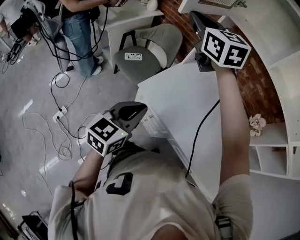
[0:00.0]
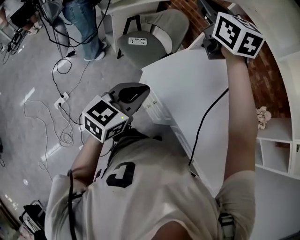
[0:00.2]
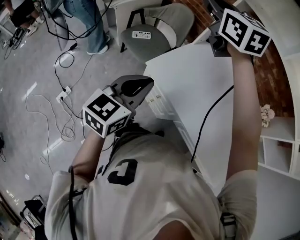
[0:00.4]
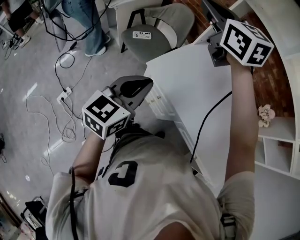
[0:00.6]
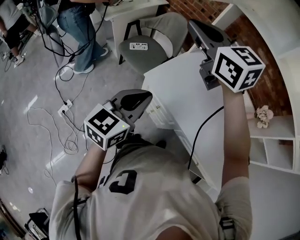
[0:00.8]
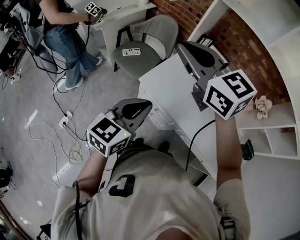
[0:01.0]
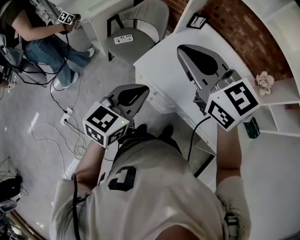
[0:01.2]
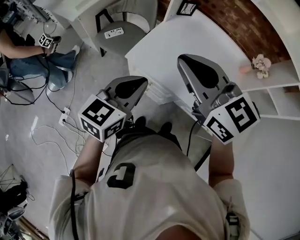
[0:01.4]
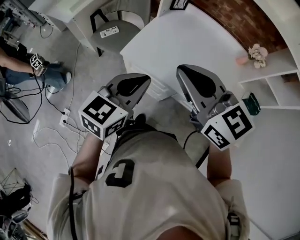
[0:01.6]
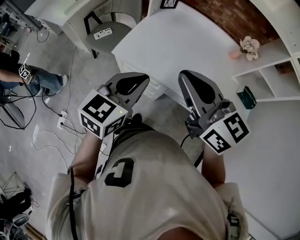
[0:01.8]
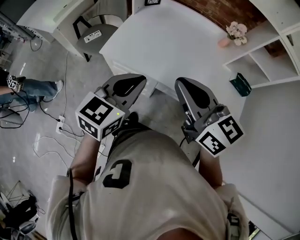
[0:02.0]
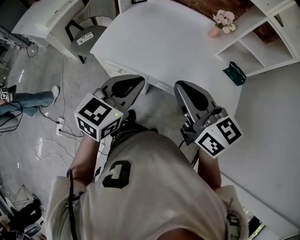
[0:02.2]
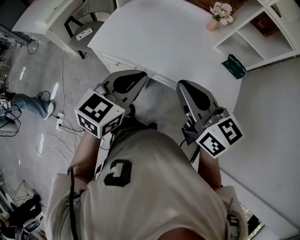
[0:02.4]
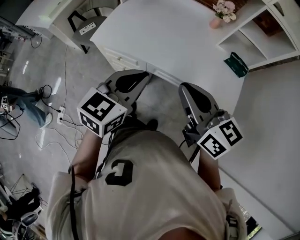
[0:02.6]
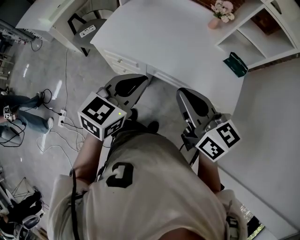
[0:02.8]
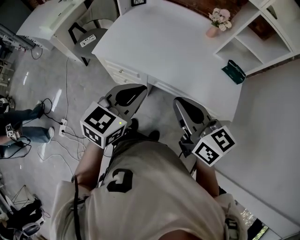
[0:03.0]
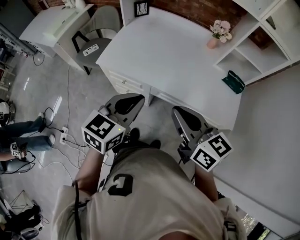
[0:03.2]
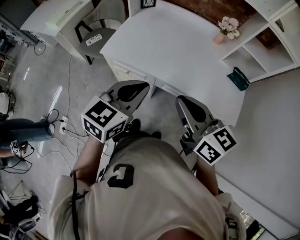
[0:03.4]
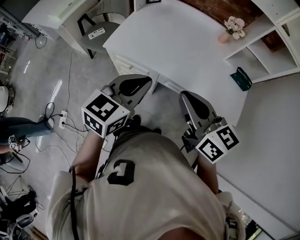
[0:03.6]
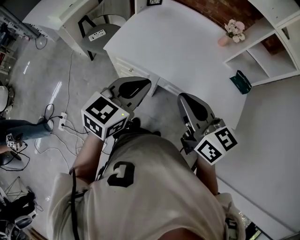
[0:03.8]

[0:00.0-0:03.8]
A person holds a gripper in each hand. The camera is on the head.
0:00.0 to 0:01.2: The right gripper is displaced backward by about 20 cm.
0:01.2 to 0:02.6: The two grippers go roughly 30 cm to the right and backward. The right gripper changes its angle by about 40 degrees.
0:02.6 to 0:03.8: The grippers both shift to the left by roughly 5 cm.

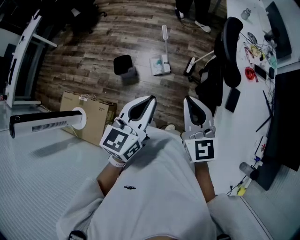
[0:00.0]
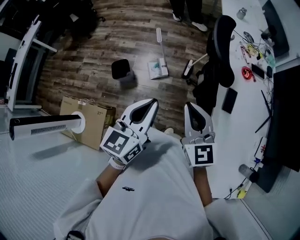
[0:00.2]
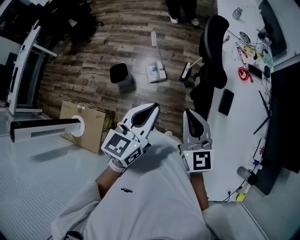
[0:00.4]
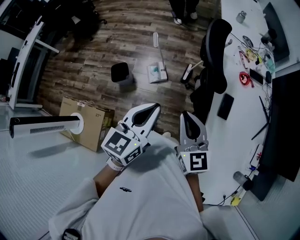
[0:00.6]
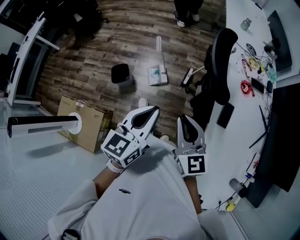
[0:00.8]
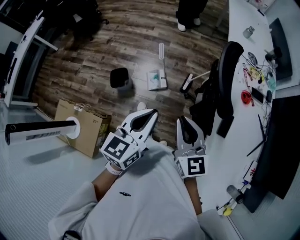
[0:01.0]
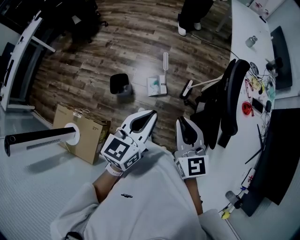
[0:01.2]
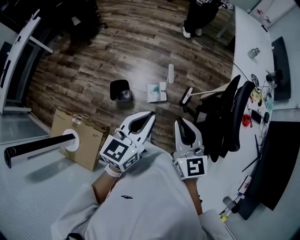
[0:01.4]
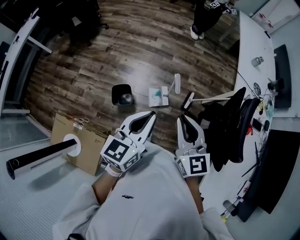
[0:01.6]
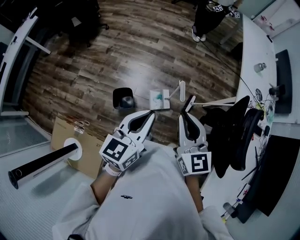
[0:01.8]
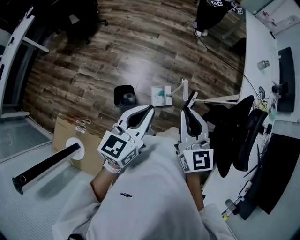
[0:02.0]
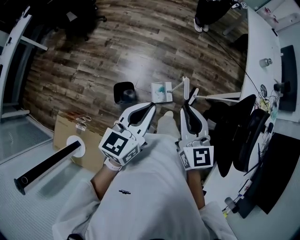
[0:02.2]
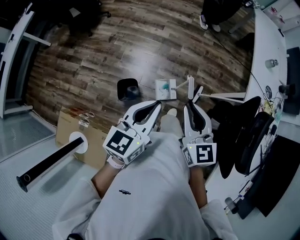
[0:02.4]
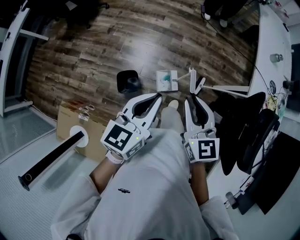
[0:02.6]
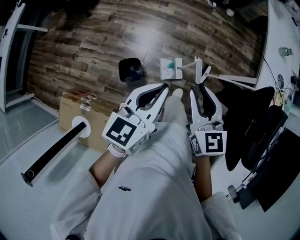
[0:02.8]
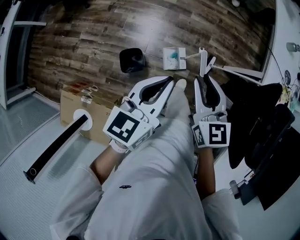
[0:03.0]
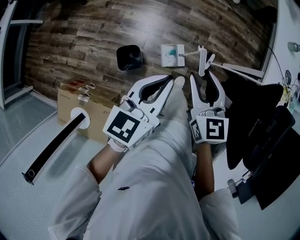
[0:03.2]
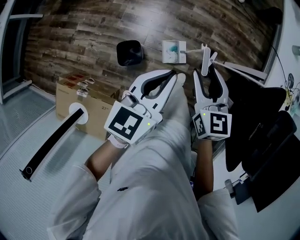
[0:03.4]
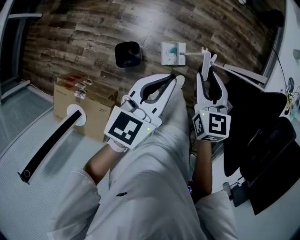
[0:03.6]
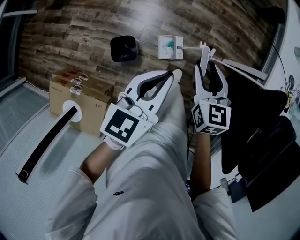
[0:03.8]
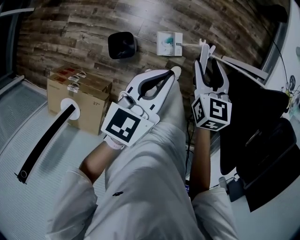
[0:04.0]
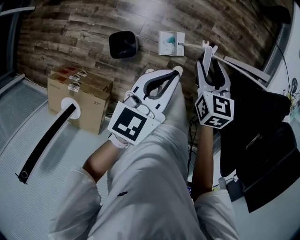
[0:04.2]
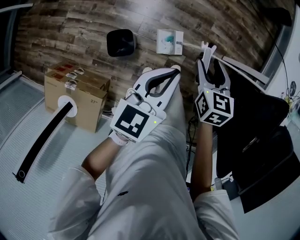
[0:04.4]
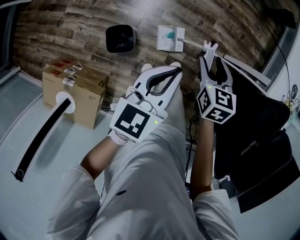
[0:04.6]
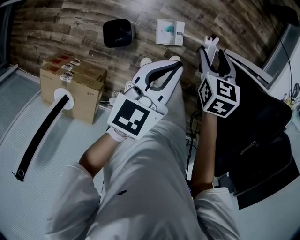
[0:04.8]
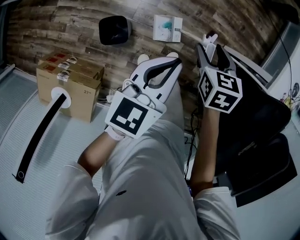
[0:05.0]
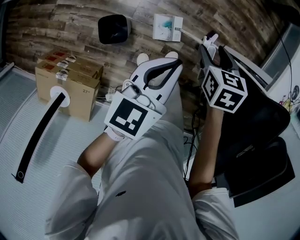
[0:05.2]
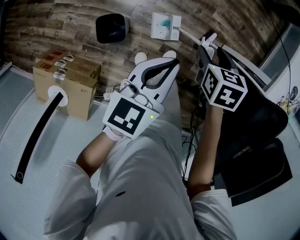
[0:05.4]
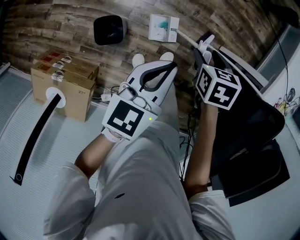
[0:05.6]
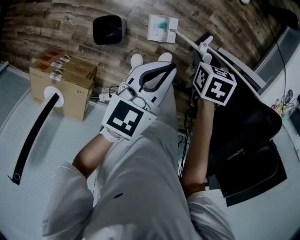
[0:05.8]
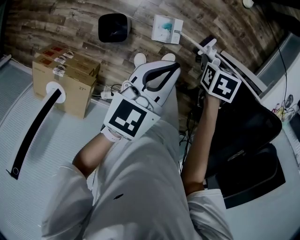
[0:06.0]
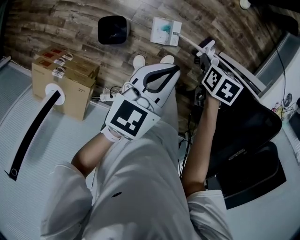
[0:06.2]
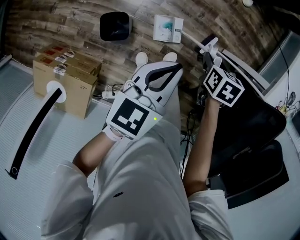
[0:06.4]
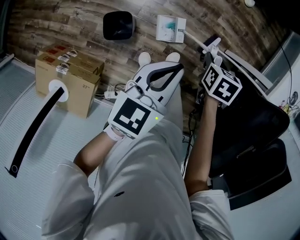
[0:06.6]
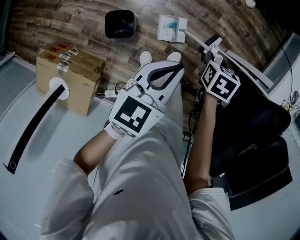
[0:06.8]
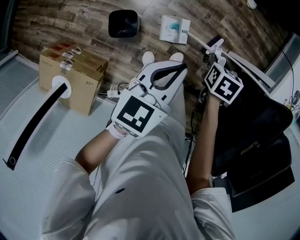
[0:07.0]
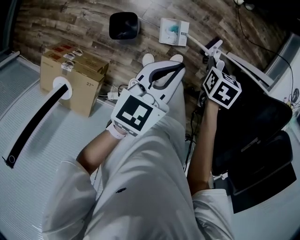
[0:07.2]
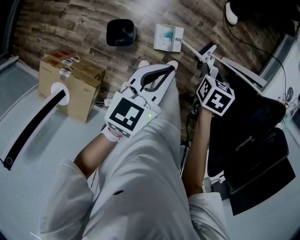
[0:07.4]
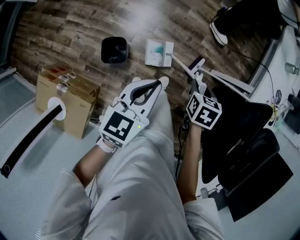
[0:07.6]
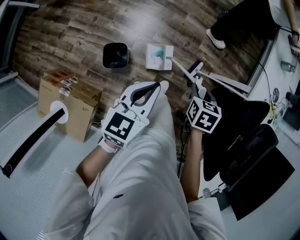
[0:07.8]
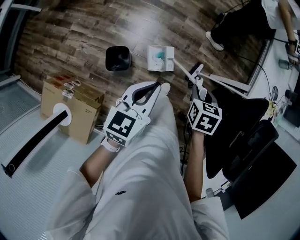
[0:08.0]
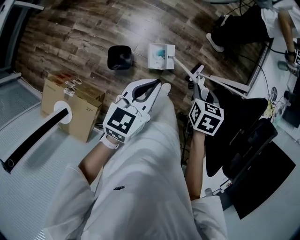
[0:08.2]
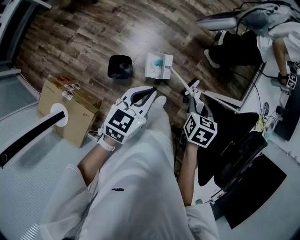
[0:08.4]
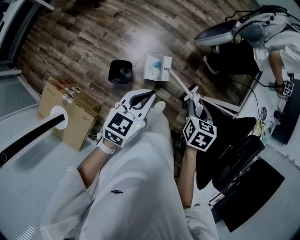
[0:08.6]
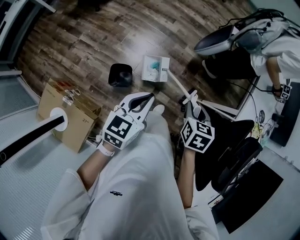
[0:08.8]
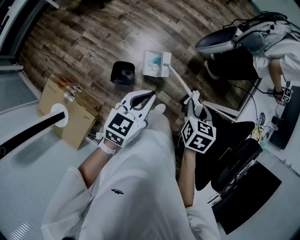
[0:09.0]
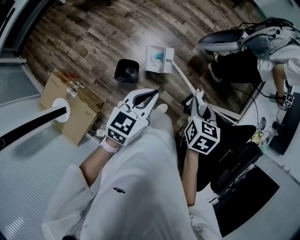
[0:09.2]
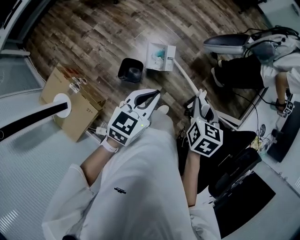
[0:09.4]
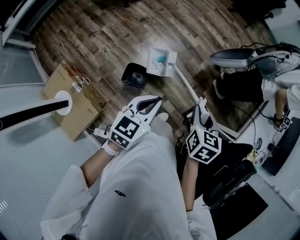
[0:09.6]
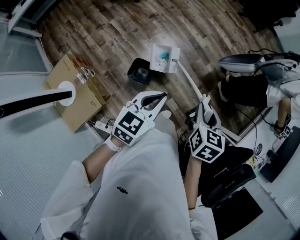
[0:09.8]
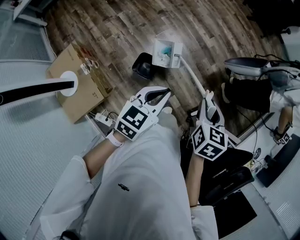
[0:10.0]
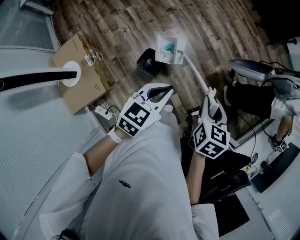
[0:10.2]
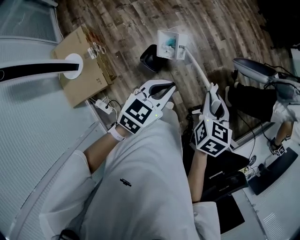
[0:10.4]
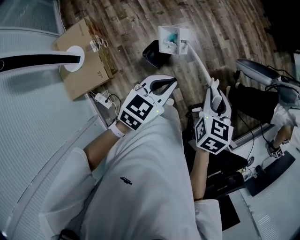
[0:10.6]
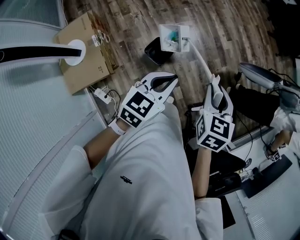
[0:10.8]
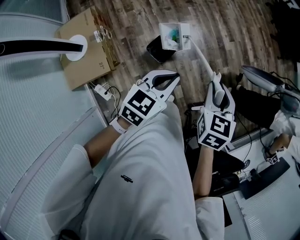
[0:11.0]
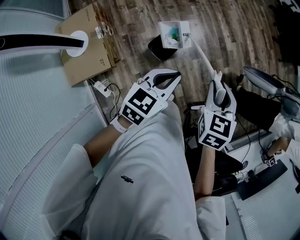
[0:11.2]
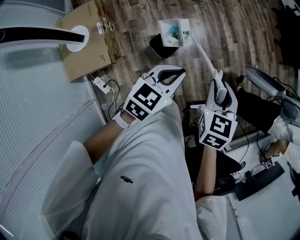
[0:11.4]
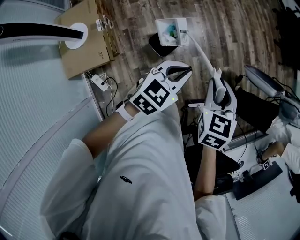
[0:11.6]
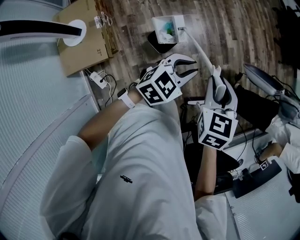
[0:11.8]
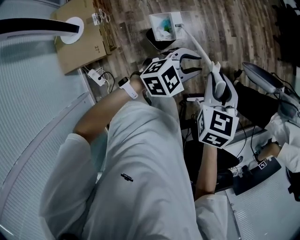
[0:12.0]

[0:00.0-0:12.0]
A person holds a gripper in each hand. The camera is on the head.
0:00.0 to 0:01.6: The grippers both shift forward and to the left by approximately 30 cm.
0:01.6 to 0:03.0: Both grippers travel together forward and downward, approximately 20 cm.
0:03.0 to 0:04.4: The left gripper heads downward, covering some 15 cm; the right gripper is displaced downward and forward by some 20 cm, turns by about 20 degrees, and opens up.
0:04.4 to 0:06.0: The right gripper moves downward, roughly 10 cm, points its fingers roughly 40 degrees further downward, and closes up. The left gripper goes roughly 5 cm downward.
0:06.0 to 0:07.6: The left gripper moves approximately 10 cm. Meanwhile the right gripper moves upward, roughly 10 cm.
0:07.6 to 0:09.0: The left gripper goes some 10 cm upward and to the left, while the right gripper heads upward and to the left, covering roughly 20 cm.
0:09.0 to 0:10.4: The left gripper is displaced to the left by some 10 cm; the right gripper moves to the left, roughly 15 cm, and rotates approximately 30 degrees.
0:10.4 to 0:12.0: The right gripper heads to the left, covering roughly 10 cm, and swivels approximately 30 degrees; the left gripper moves downward, about 5 cm, turns by approximately 20 degrees, and opens its fingers.

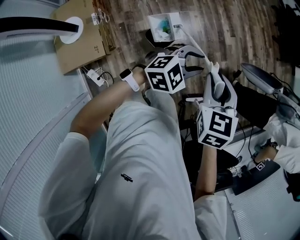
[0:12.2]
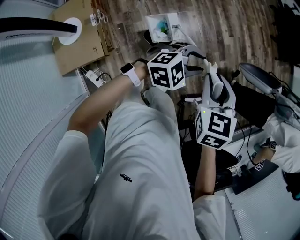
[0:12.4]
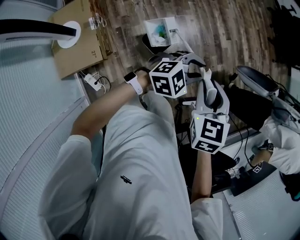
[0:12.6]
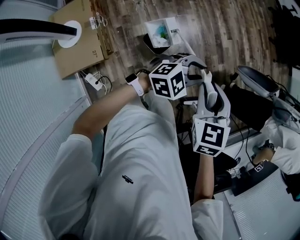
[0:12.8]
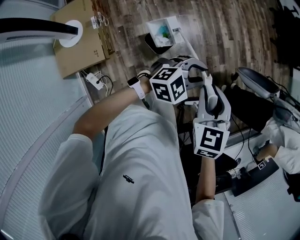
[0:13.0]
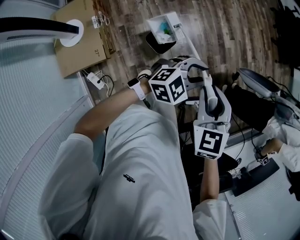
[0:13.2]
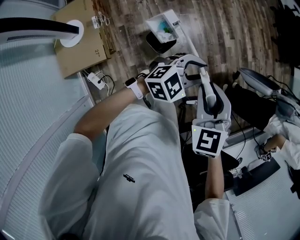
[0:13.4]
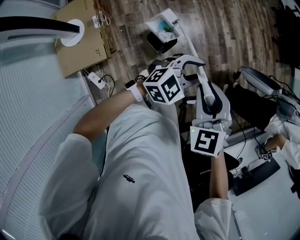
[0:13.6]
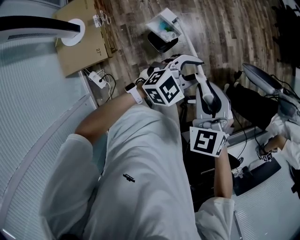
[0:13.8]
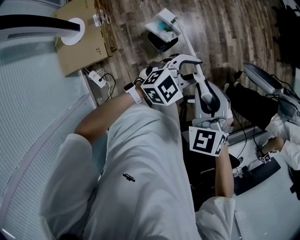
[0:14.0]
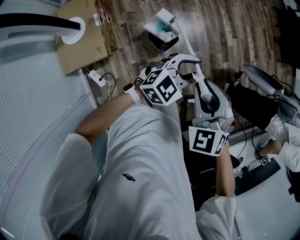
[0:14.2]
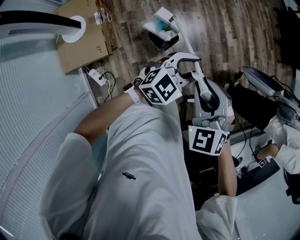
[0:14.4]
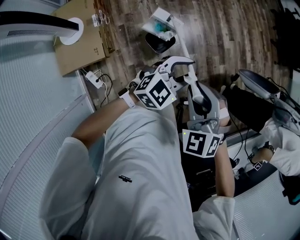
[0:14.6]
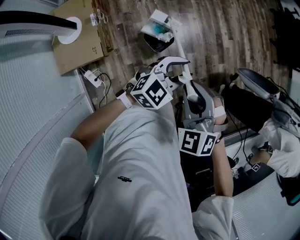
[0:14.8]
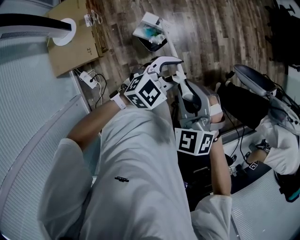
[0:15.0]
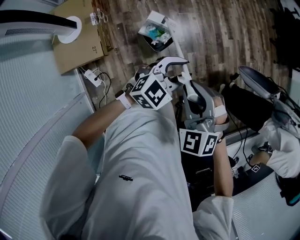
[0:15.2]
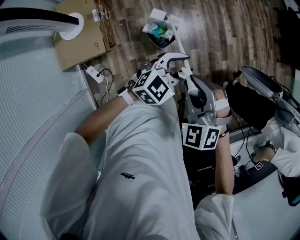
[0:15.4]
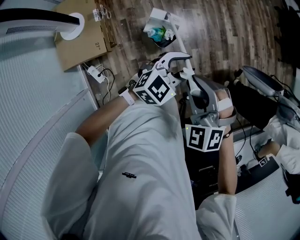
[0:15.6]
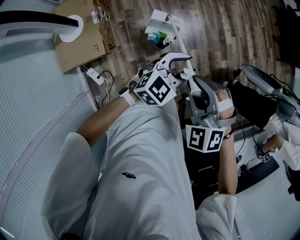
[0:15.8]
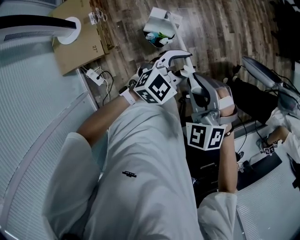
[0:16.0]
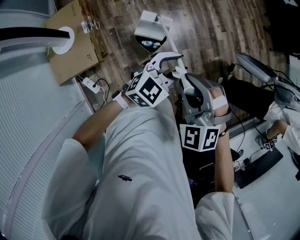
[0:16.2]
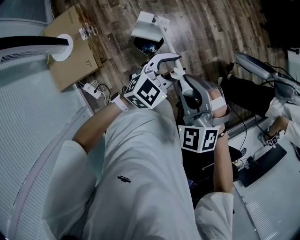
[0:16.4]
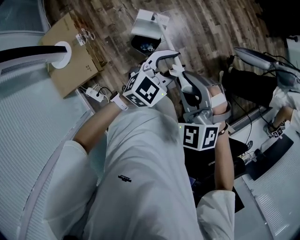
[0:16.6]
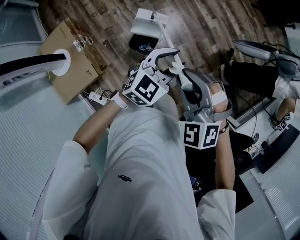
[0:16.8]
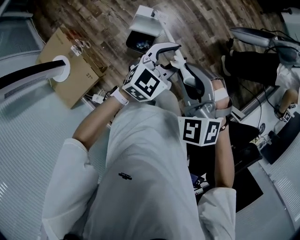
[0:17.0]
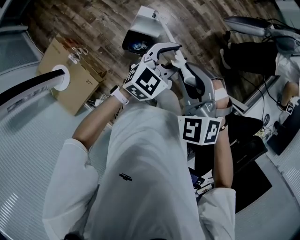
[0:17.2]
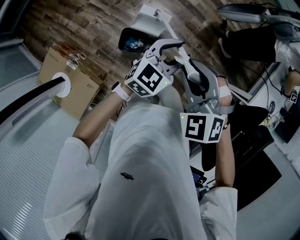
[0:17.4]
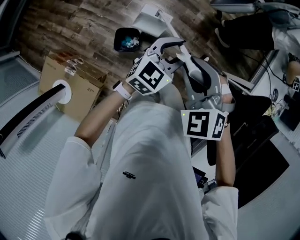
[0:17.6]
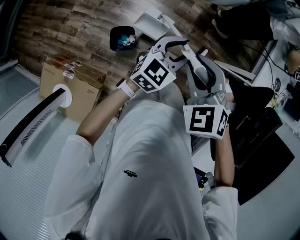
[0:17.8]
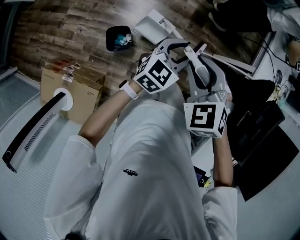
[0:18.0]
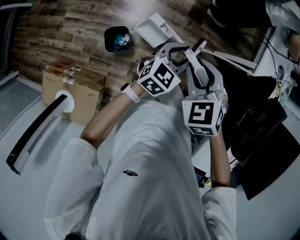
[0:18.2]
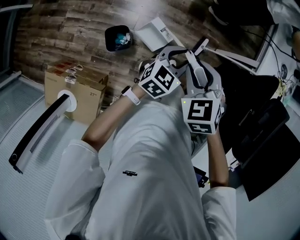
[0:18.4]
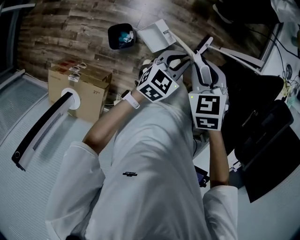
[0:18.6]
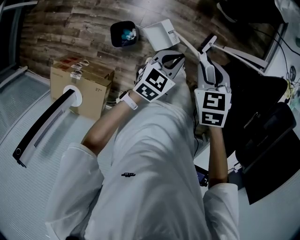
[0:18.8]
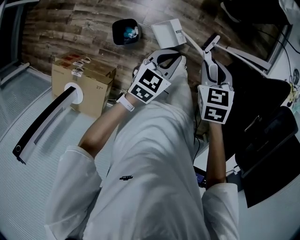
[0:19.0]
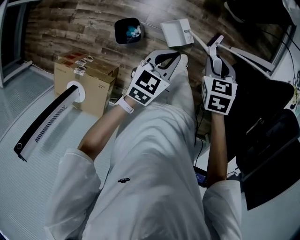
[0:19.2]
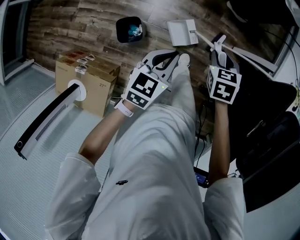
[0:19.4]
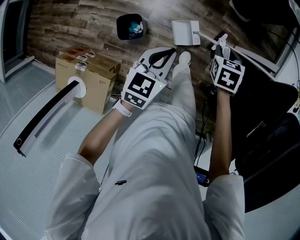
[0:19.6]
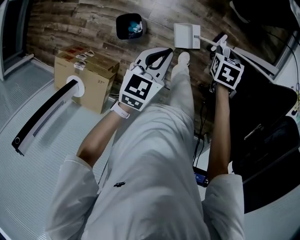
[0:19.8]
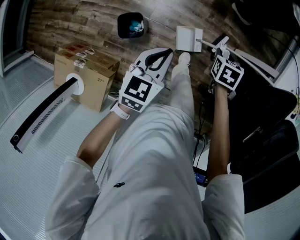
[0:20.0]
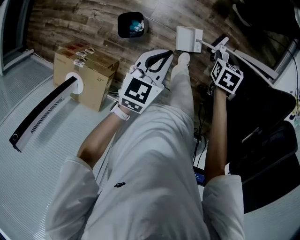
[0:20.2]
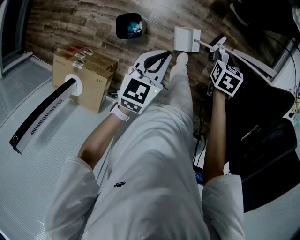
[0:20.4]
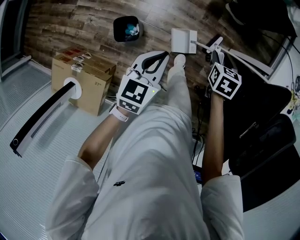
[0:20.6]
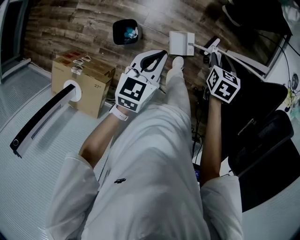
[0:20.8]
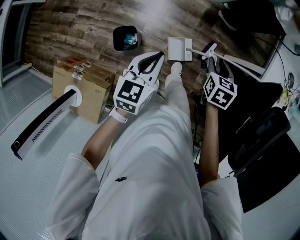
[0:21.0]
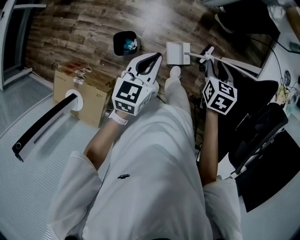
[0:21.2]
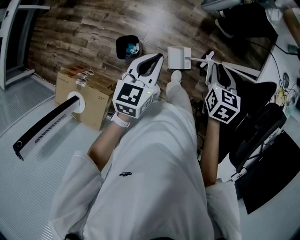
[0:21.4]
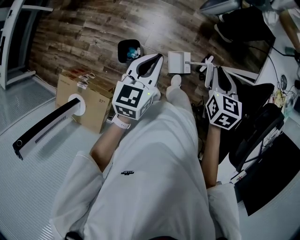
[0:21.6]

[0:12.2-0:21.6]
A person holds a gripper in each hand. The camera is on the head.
0:12.2 to 0:13.8: The right gripper moves backward, some 5 cm, and rotates some 30 degrees.
0:13.8 to 0:15.4: The right gripper swivels about 20 degrees.
0:15.4 to 0:17.0: The right gripper shifts by roughly 5 cm, and swivels roughly 20 degrees. The left gripper is displaced to the right by some 5 cm.
0:17.0 to 0:18.4: The right gripper shifts by approximately 20 cm, and twists roughly 60 degrees clockwise, seen from behind. The left gripper shifts by about 25 cm, and swivels about 30 degrees.
0:18.4 to 0:20.0: The right gripper shifts roughly 25 cm downward and to the right, and swivels roughly 40 degrees. Meanwhile the left gripper shifts about 5 cm to the left, swivels about 20 degrees, and closes.
0:20.0 to 0:21.6: The left gripper moves upward, about 15 cm; the right gripper heads upward, covering some 25 cm, and changes its angle by about 30 degrees.
